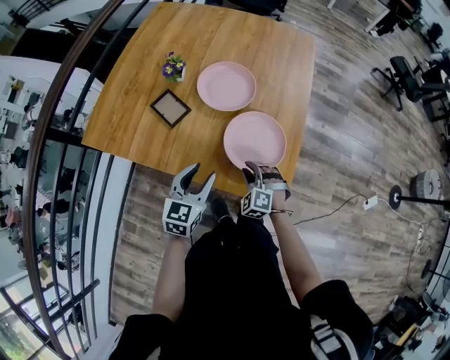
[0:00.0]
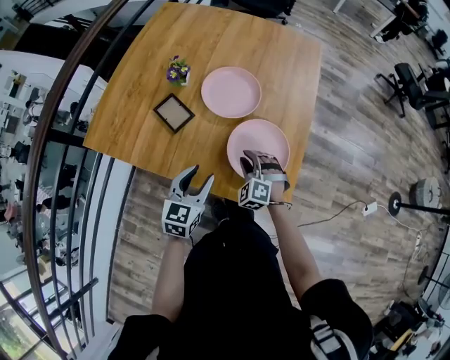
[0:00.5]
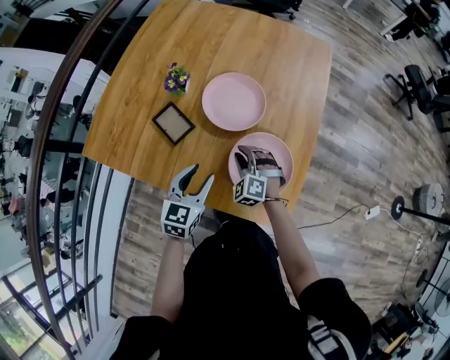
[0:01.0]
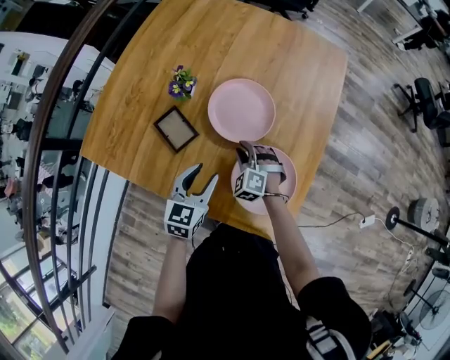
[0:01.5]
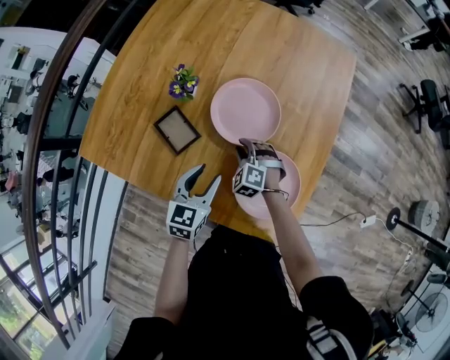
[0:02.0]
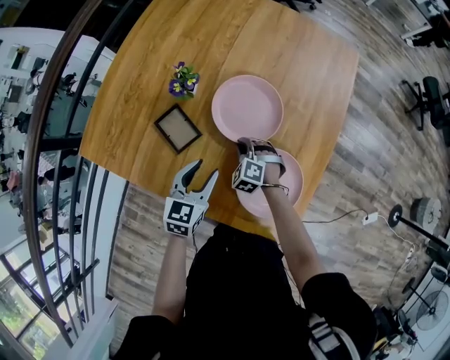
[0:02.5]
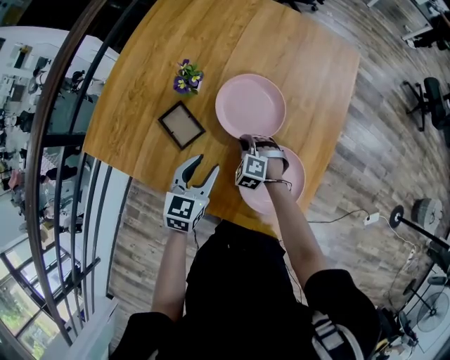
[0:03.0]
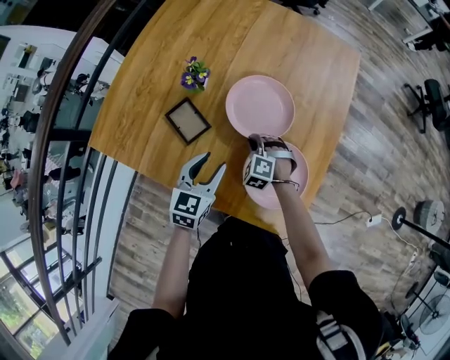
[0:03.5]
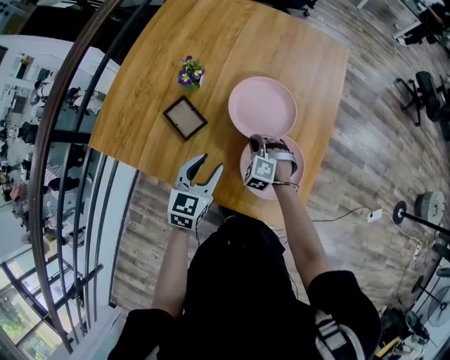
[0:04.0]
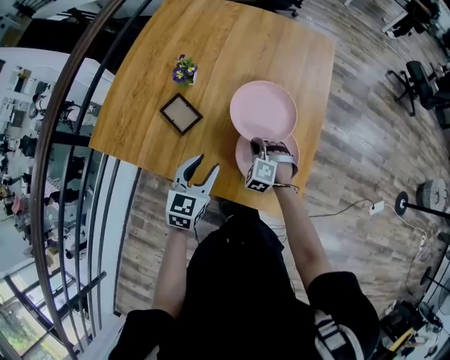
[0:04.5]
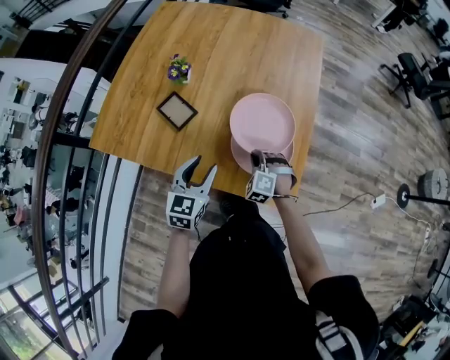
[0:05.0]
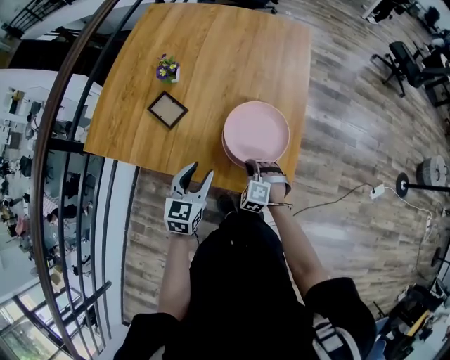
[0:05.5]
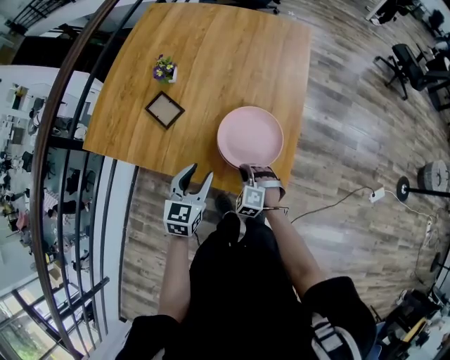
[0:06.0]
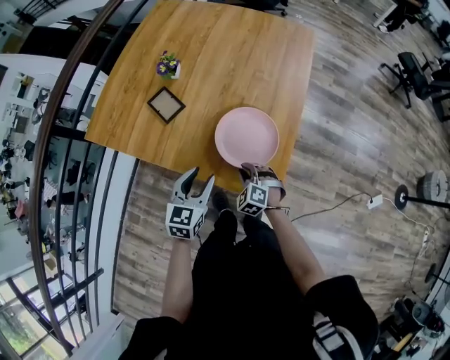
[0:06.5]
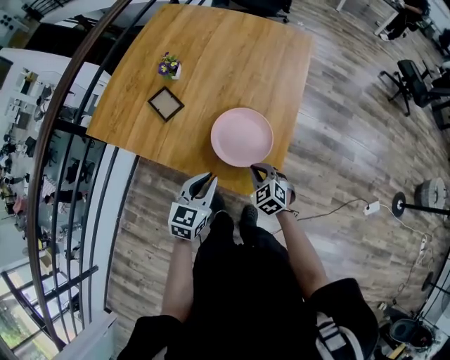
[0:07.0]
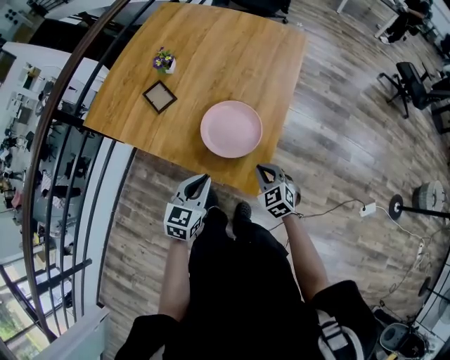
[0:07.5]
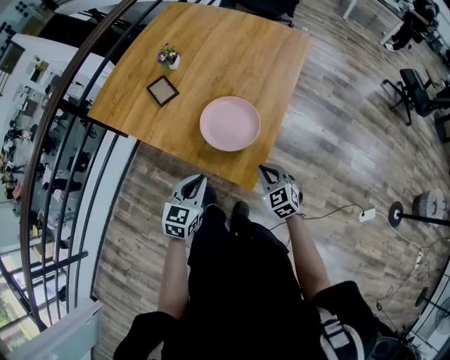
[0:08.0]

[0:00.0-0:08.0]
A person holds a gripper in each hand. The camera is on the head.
0:00.0 to 0:02.0: The right gripper moves forward and to the left, about 25 cm, while the left gripper moves forward, approximately 15 cm.
0:02.0 to 0:04.0: The right gripper ends up approximately 5 cm from where it was, and closes its fingers. The left gripper changes place by approximately 5 cm.
0:04.0 to 0:06.0: The right gripper moves backward and to the right, approximately 20 cm, while the left gripper shifts roughly 10 cm backward and to the right.
0:06.0 to 0:08.0: The right gripper is displaced to the right, upward and backward by approximately 20 cm, and turns by about 30 degrees; the left gripper travels backward and to the right by some 15 cm, and closes its fingers.

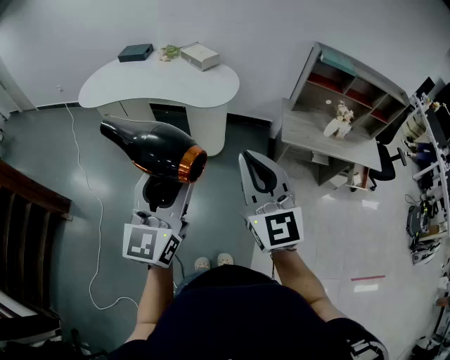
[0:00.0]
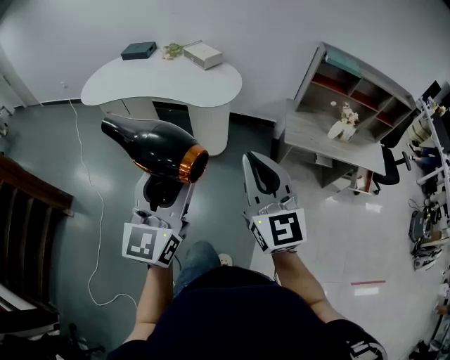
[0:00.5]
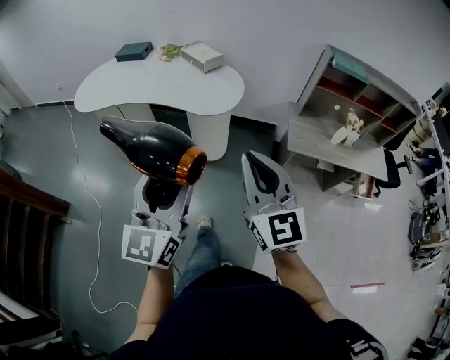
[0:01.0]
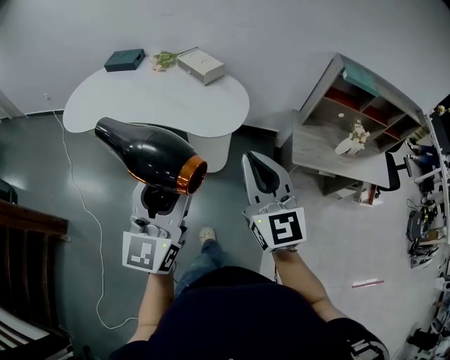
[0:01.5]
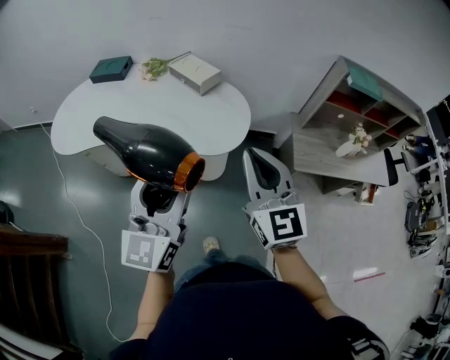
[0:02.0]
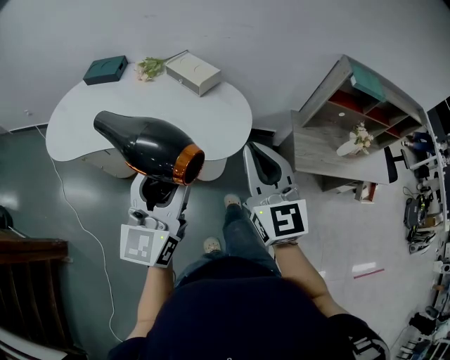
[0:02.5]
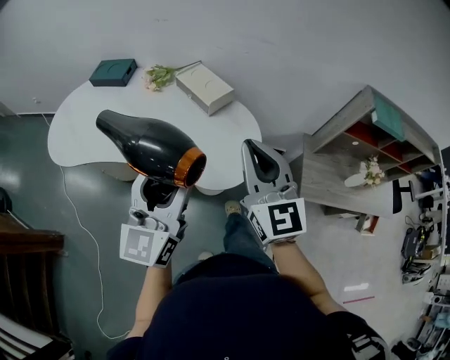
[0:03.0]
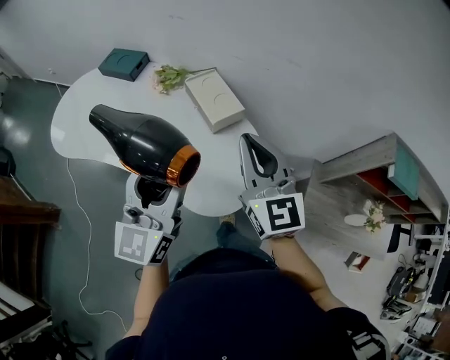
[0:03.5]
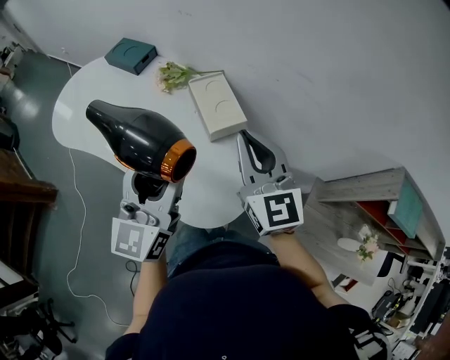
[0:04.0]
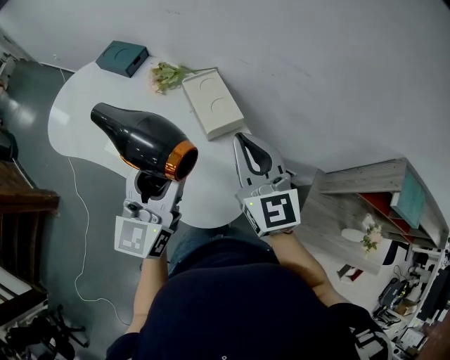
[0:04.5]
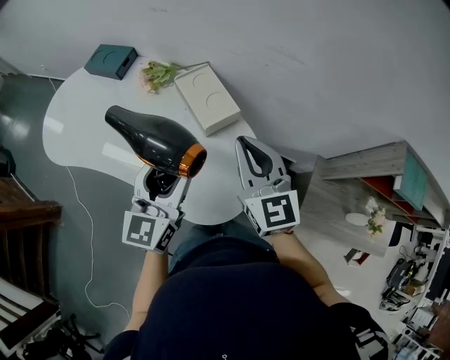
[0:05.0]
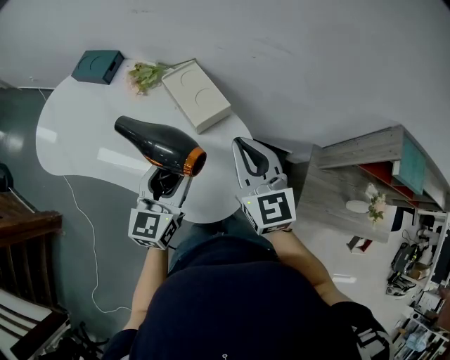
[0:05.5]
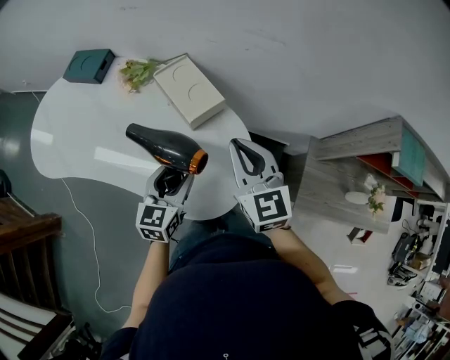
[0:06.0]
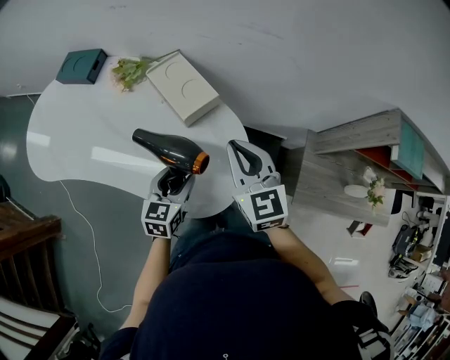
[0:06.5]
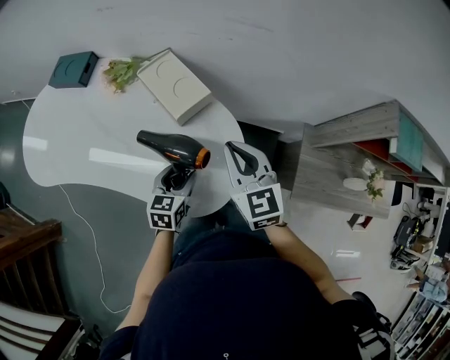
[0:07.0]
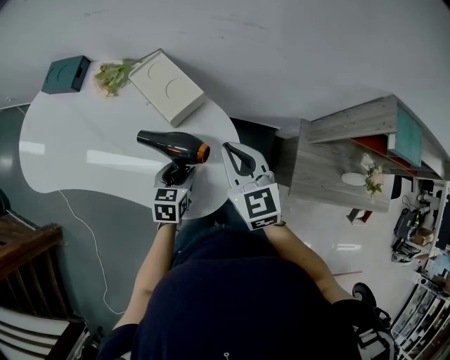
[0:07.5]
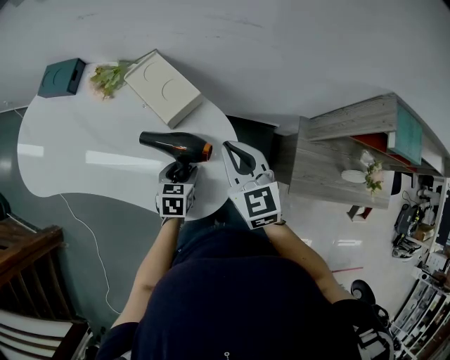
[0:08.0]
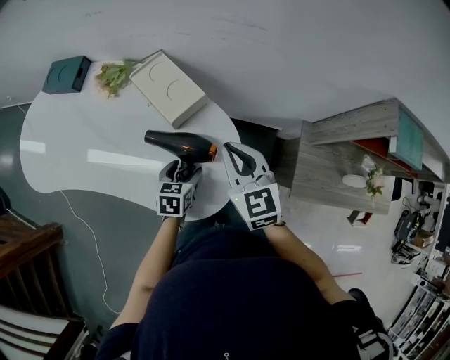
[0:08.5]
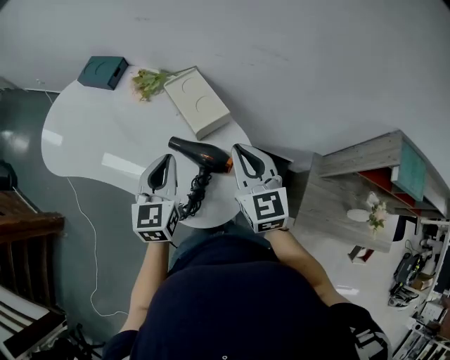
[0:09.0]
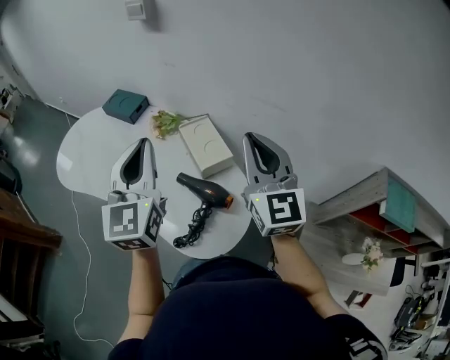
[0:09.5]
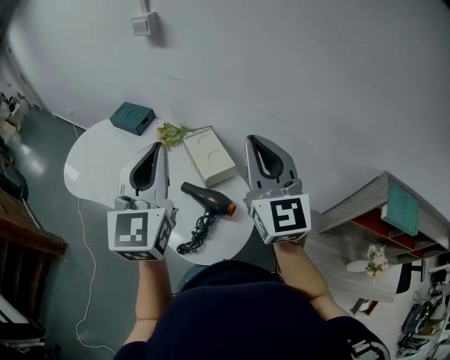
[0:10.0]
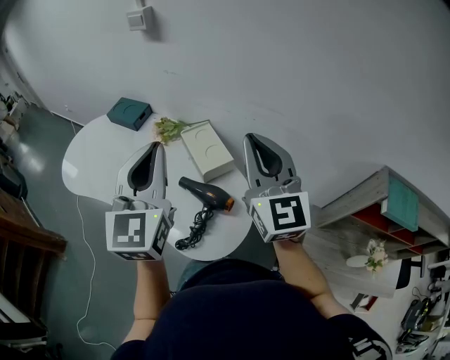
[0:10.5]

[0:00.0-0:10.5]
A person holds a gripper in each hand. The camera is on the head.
0:00.0 to 0:02.0: Both grippers travel together forward, roughly 35 cm.
0:02.0 to 0:04.0: The left gripper shifts by roughly 35 cm, and turns by about 20 degrees; the right gripper ends up roughly 40 cm from where it was, and turns by some 30 degrees.
0:04.0 to 0:06.5: The right gripper is displaced downward by roughly 10 cm. The left gripper moves downward, roughly 25 cm, and angles its fingers downward, by roughly 40 degrees.
0:06.5 to 0:08.5: The left gripper is displaced downward by approximately 10 cm.
0:08.5 to 0:10.5: The right gripper is displaced upward by some 25 cm, and tilts its fingers some 30 degrees upward. The left gripper moves upward, approximately 50 cm, tilts its fingers some 50 degrees upward, and closes up.

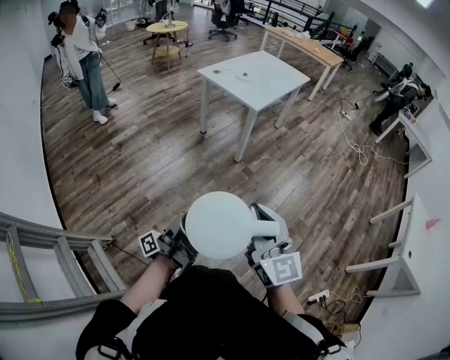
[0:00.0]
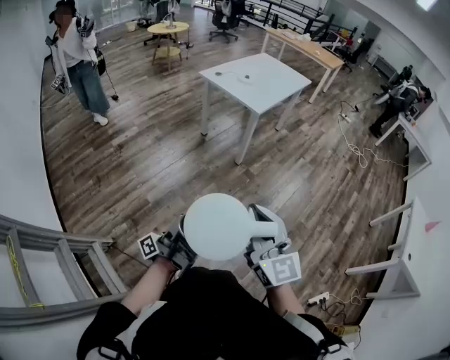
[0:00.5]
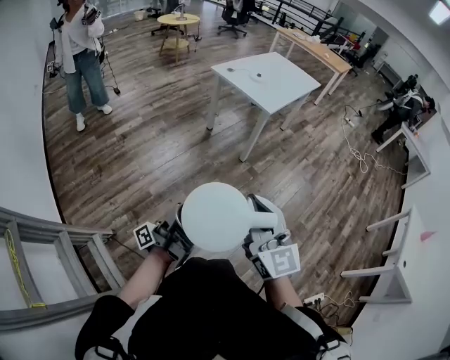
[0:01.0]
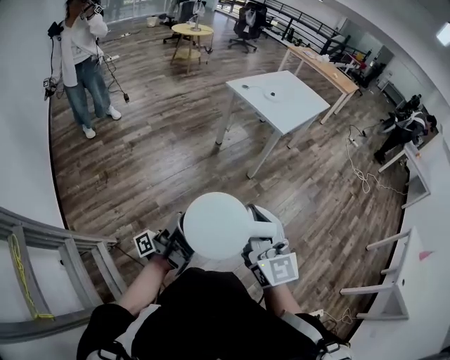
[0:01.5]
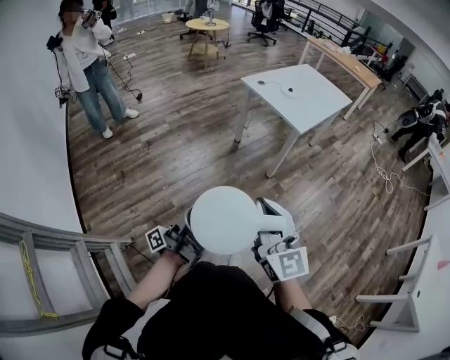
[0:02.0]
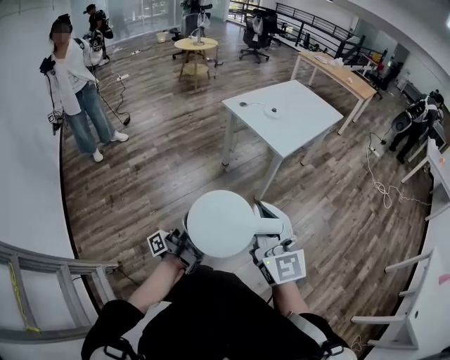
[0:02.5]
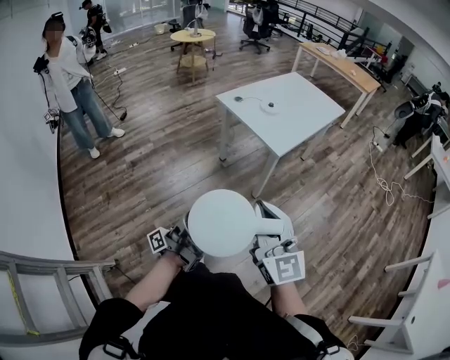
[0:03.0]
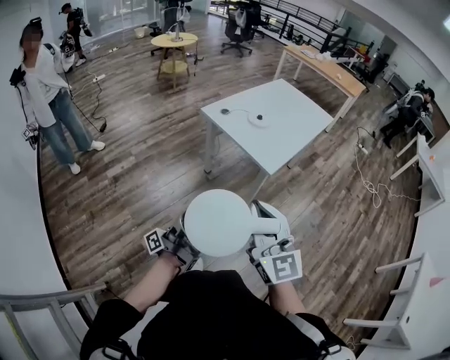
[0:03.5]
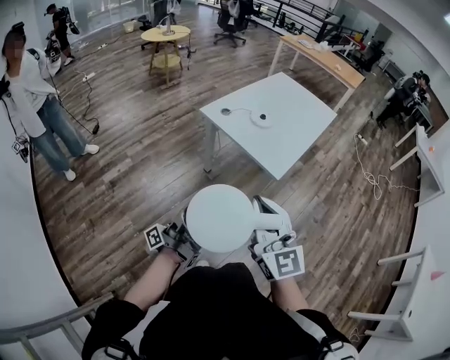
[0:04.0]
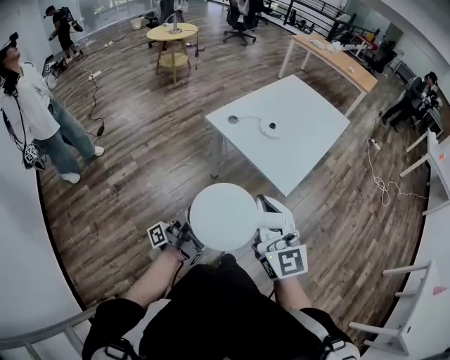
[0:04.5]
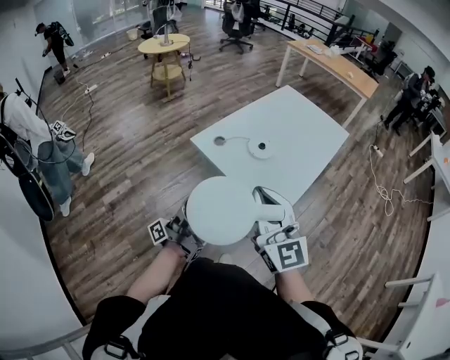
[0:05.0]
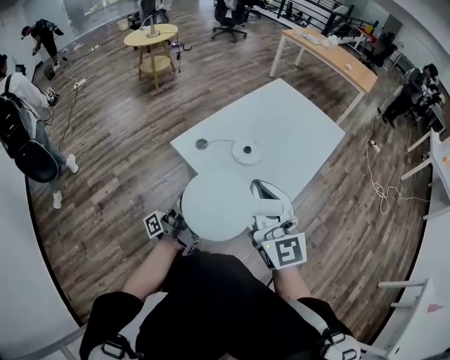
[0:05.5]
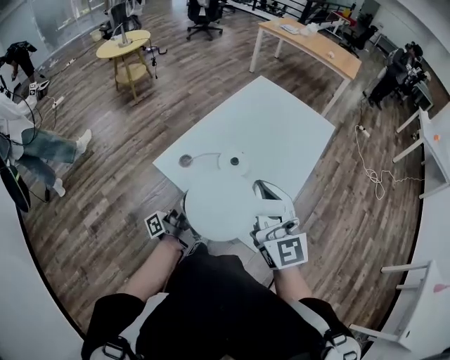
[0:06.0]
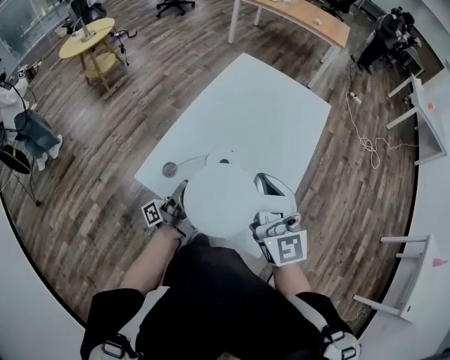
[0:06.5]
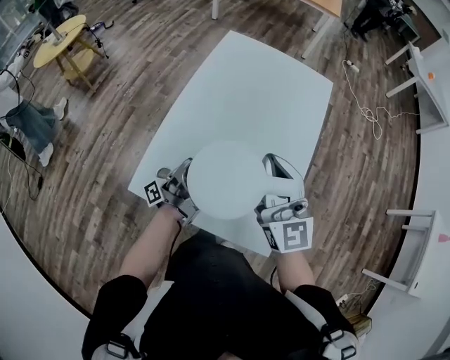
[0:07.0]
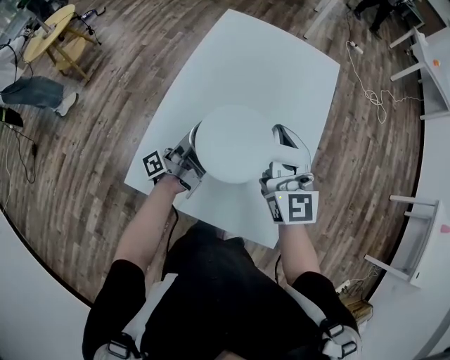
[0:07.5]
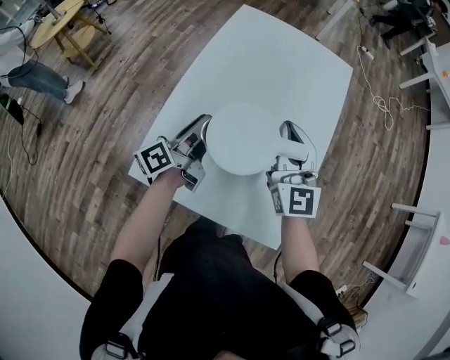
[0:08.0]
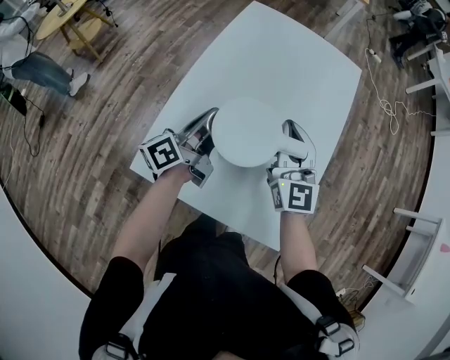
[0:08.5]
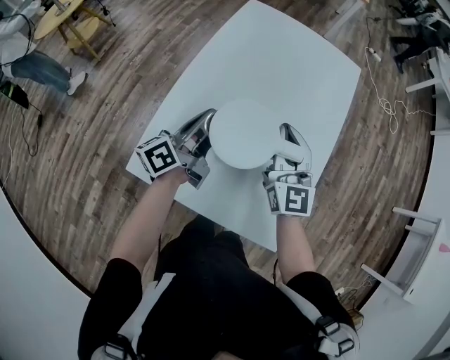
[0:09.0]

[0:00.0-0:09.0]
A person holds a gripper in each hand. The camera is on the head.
0:00.0 to 0:02.0: The right gripper changes place by some 20 cm.
0:02.0 to 0:04.5: The right gripper shifts by some 40 cm.
0:04.5 to 0:07.0: The right gripper shifts by some 50 cm, and rotates about 30 degrees.
0:07.0 to 0:09.0: The right gripper moves downward, approximately 10 cm.
